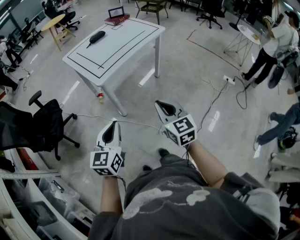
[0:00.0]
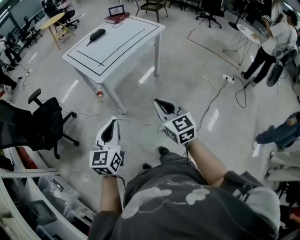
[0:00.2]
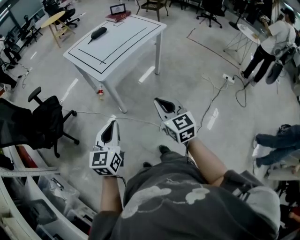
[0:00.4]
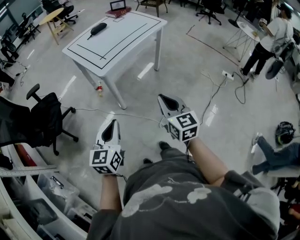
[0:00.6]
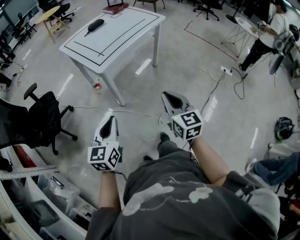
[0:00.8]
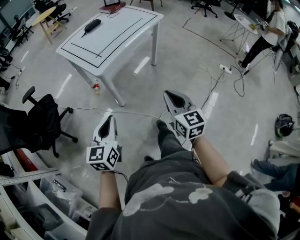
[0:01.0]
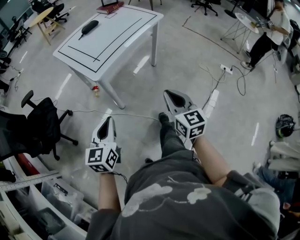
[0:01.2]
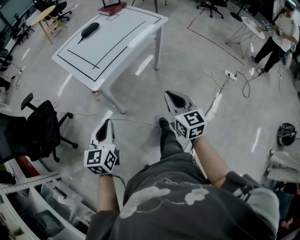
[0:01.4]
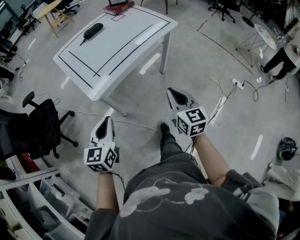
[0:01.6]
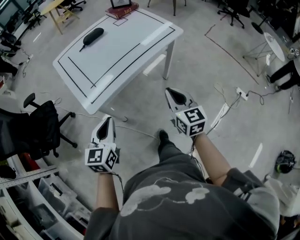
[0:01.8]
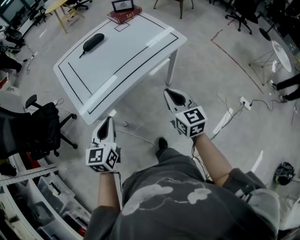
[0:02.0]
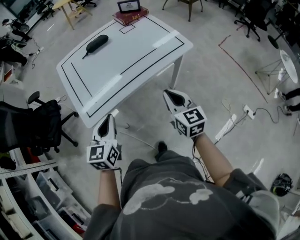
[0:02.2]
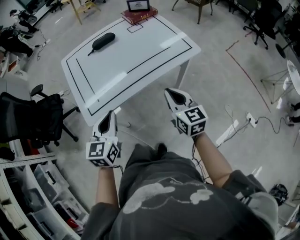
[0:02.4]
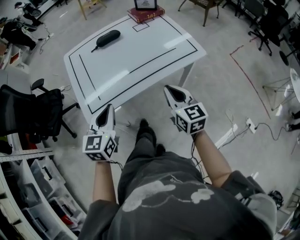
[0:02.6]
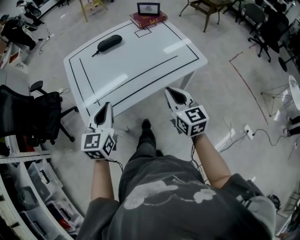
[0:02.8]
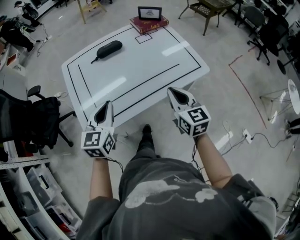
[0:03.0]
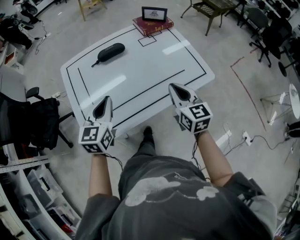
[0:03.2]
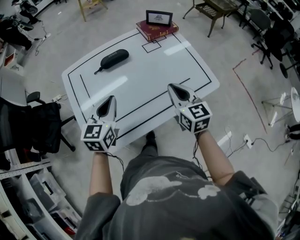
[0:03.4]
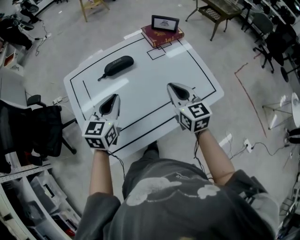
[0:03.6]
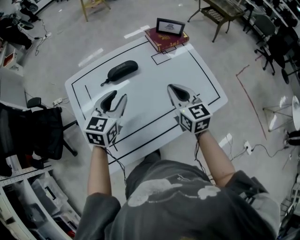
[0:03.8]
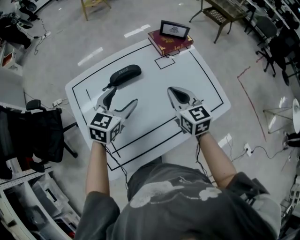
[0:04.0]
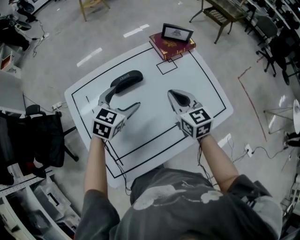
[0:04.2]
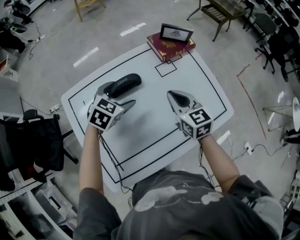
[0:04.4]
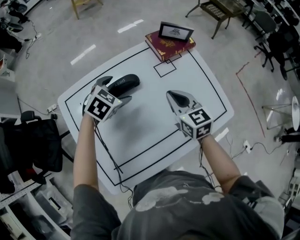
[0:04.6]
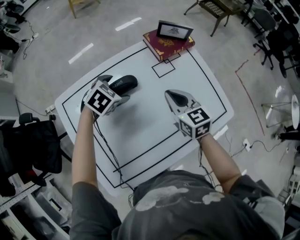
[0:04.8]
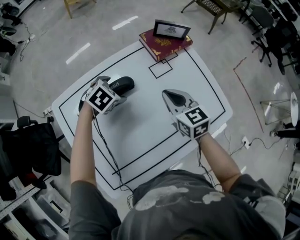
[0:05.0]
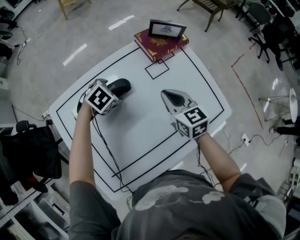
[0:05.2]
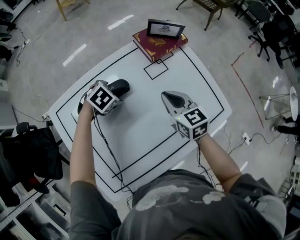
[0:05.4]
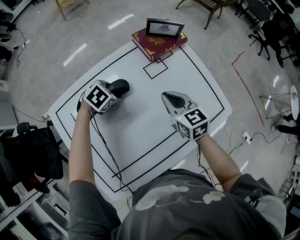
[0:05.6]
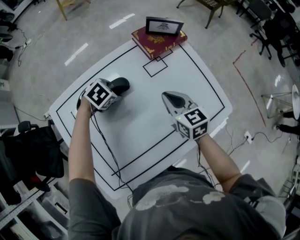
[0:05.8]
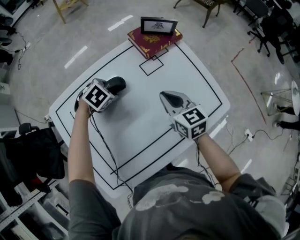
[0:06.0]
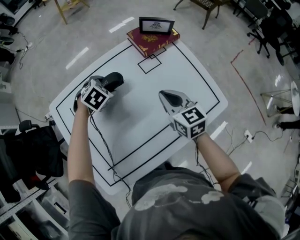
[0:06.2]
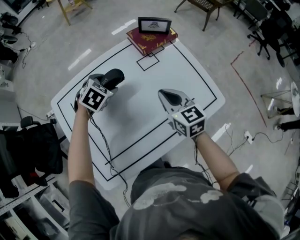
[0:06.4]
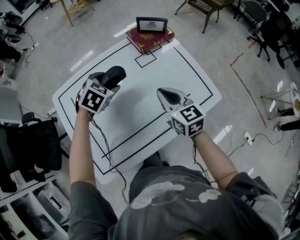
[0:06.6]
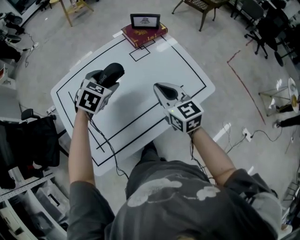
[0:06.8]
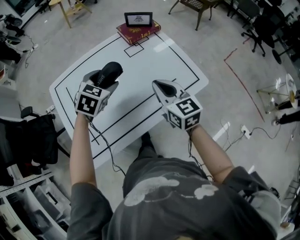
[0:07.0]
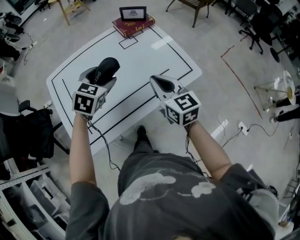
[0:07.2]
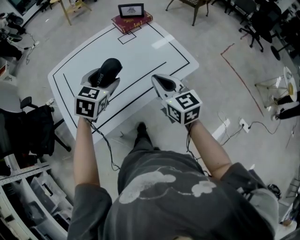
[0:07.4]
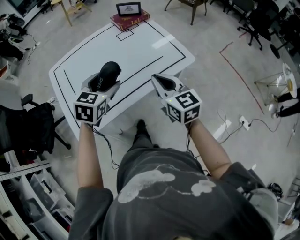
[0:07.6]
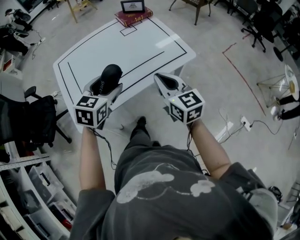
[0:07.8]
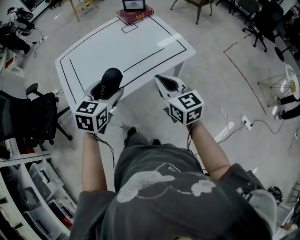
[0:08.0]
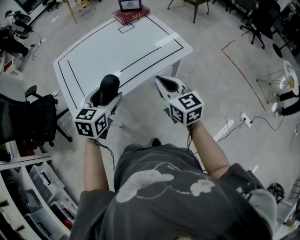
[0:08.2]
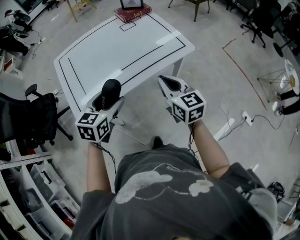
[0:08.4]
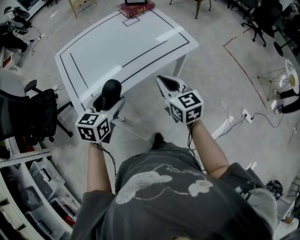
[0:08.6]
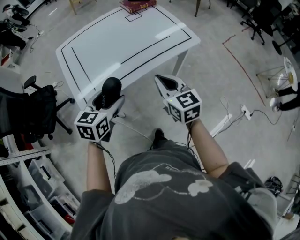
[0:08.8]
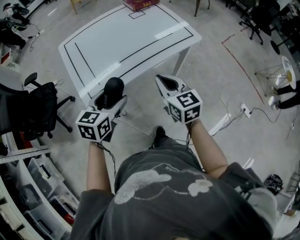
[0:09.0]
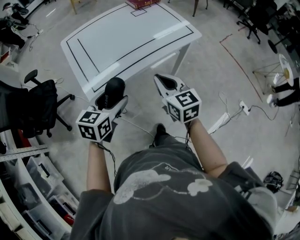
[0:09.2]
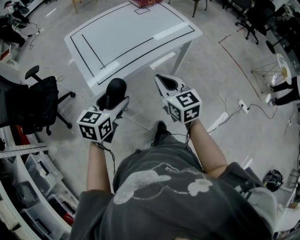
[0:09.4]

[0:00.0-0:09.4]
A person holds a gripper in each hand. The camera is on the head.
0:00.0 to 0:01.6: The two grippers go approximately 20 cm forward.
0:01.6 to 0:03.2: Both grippers move forward, approximately 40 cm. The right gripper turns by approximately 20 degrees.
0:03.2 to 0:04.8: The left gripper is displaced forward and downward by some 35 cm, points its fingers roughly 40 degrees further downward, and opens. The right gripper goes roughly 25 cm forward and to the left.
0:04.8 to 0:06.2: The grippers move only a little.
0:06.2 to 0:07.8: The right gripper travels backward by some 30 cm. The left gripper goes roughly 40 cm backward and upward, and tilts its fingers some 30 degrees upward.
0:07.8 to 0:09.4: The two grippers go about 25 cm backward and to the left.

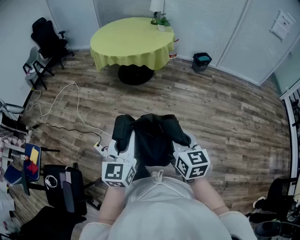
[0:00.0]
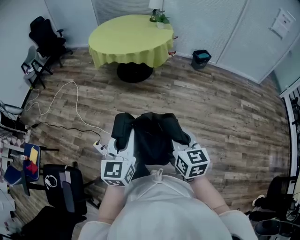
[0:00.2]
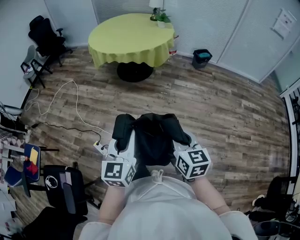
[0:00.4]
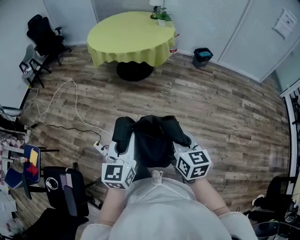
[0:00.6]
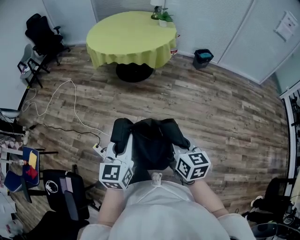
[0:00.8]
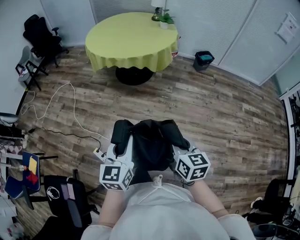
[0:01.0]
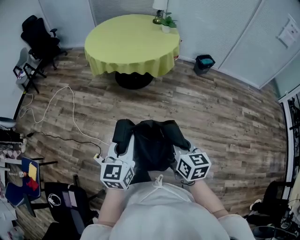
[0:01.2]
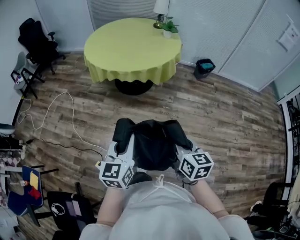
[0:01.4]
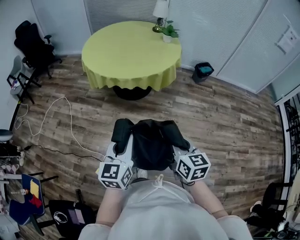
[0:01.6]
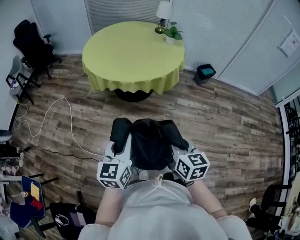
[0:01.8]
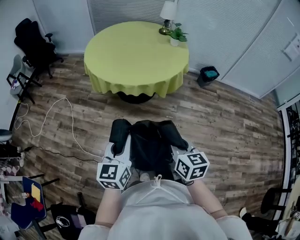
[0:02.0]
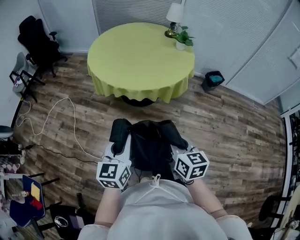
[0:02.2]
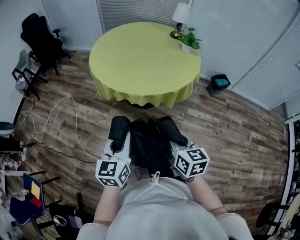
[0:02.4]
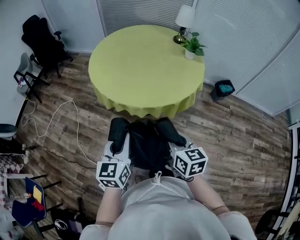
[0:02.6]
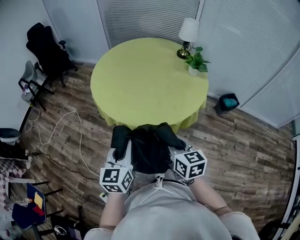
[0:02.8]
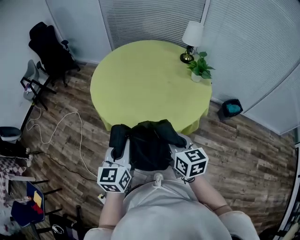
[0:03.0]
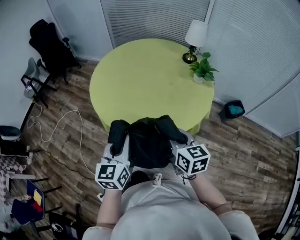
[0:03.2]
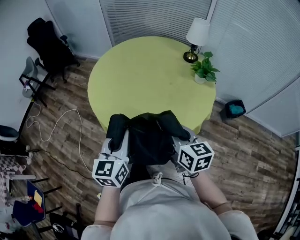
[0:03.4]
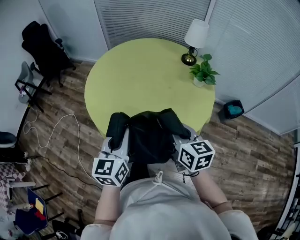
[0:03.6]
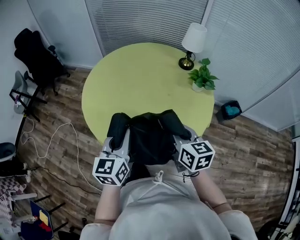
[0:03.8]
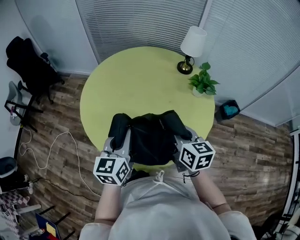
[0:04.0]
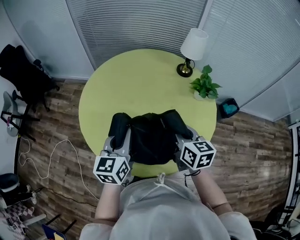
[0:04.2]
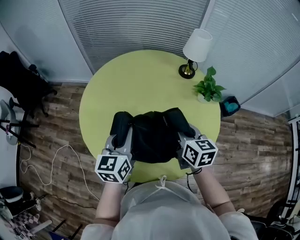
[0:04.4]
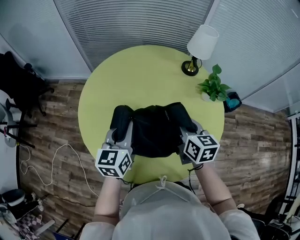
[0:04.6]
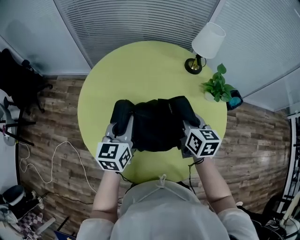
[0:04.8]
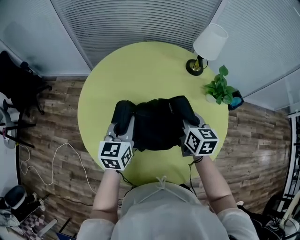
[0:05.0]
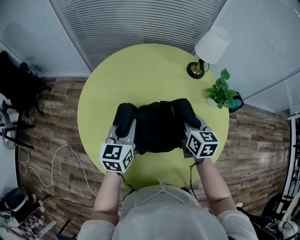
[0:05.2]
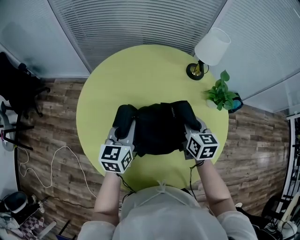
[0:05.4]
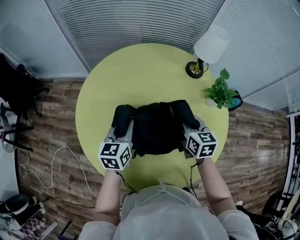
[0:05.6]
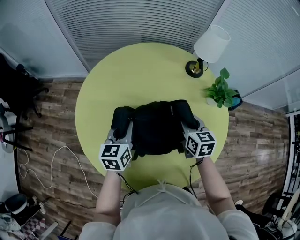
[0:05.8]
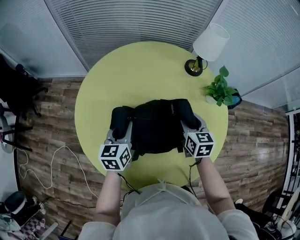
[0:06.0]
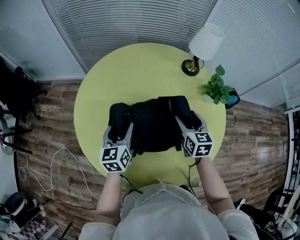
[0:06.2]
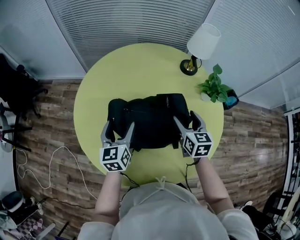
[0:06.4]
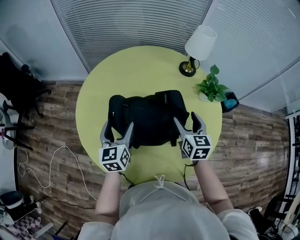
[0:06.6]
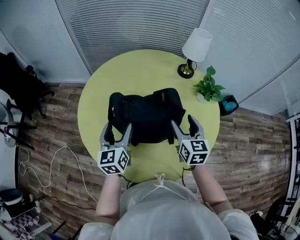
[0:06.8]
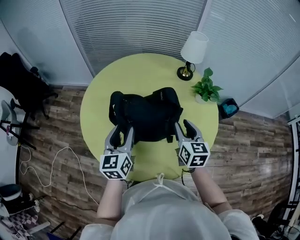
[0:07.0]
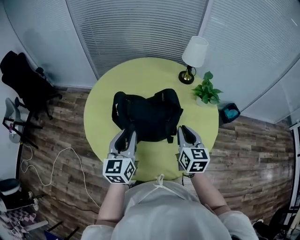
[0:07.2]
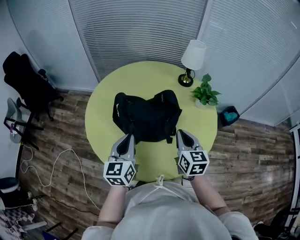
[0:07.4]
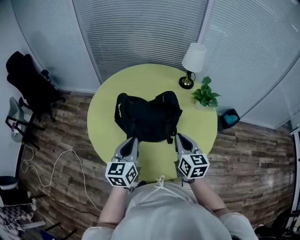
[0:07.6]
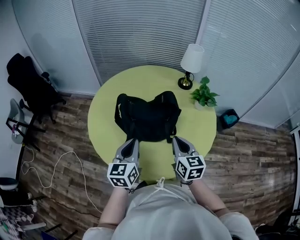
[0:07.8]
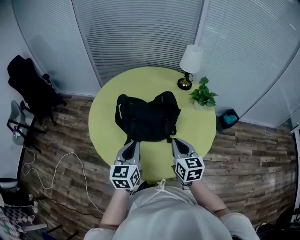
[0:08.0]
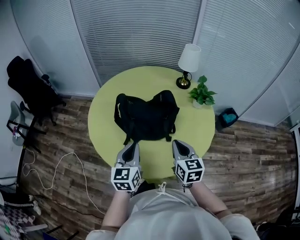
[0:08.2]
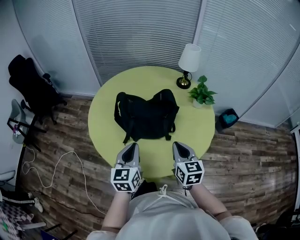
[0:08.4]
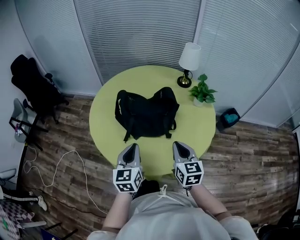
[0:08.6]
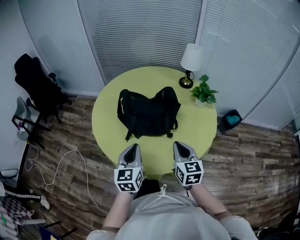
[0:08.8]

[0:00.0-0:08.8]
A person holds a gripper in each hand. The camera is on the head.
0:00.0 to 0:01.4: The two grippers go about 30 cm forward.
0:01.4 to 0:03.0: The pair of grippers is taken forward, approximately 50 cm.
0:03.0 to 0:04.4: Both grippers travel together forward, approximately 40 cm. The right gripper changes its angle by roughly 20 degrees.
0:04.4 to 0:05.8: Both grippers move forward and downward, approximately 20 cm.
0:05.8 to 0:07.4: The grippers both shift backward and upward by some 25 cm. The right gripper opens and closes again. Meanwhile the left gripper opens, then closes once more.
0:07.4 to 0:08.8: The two grippers go some 10 cm backward.

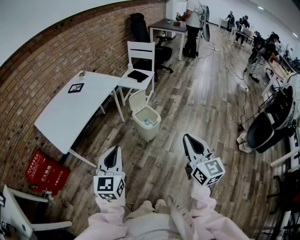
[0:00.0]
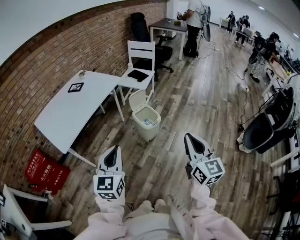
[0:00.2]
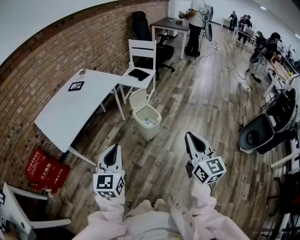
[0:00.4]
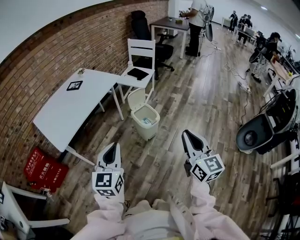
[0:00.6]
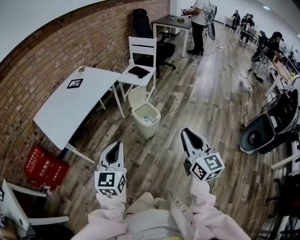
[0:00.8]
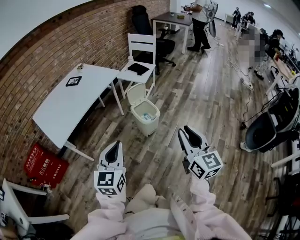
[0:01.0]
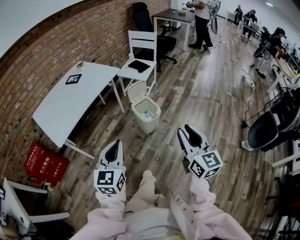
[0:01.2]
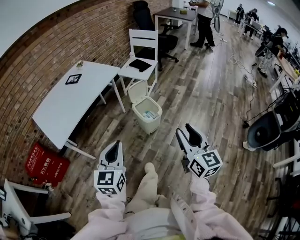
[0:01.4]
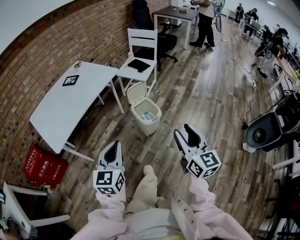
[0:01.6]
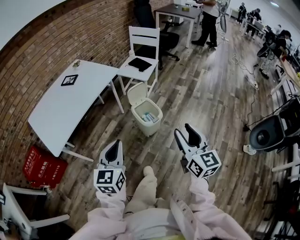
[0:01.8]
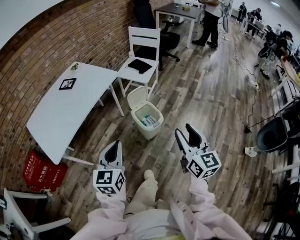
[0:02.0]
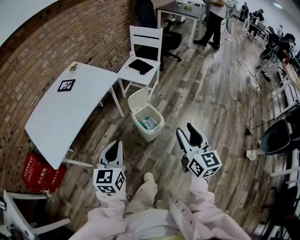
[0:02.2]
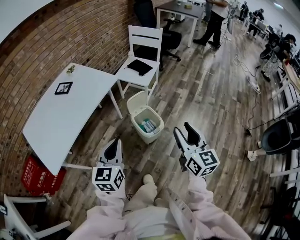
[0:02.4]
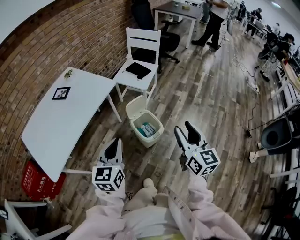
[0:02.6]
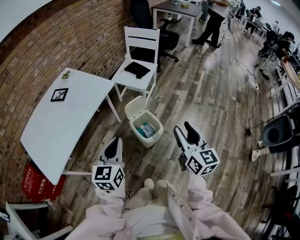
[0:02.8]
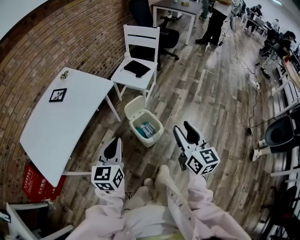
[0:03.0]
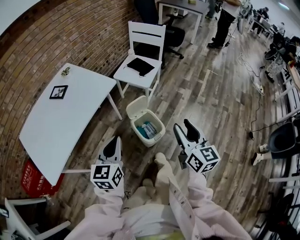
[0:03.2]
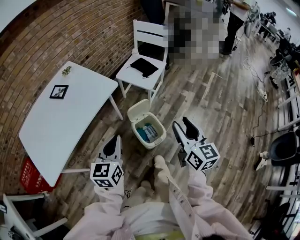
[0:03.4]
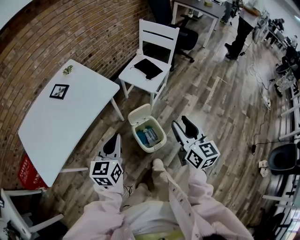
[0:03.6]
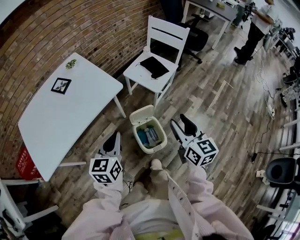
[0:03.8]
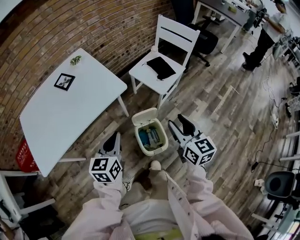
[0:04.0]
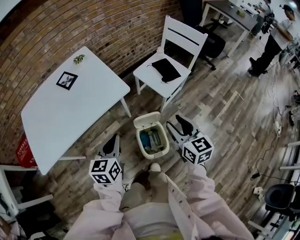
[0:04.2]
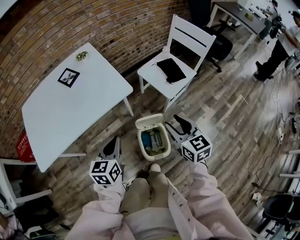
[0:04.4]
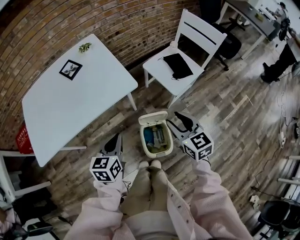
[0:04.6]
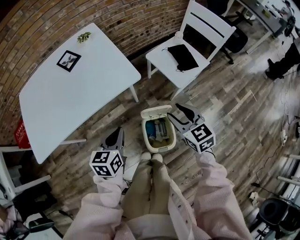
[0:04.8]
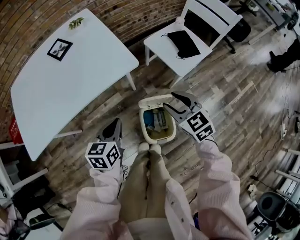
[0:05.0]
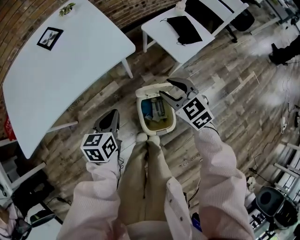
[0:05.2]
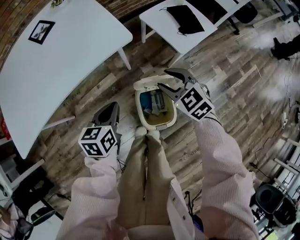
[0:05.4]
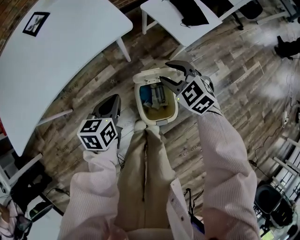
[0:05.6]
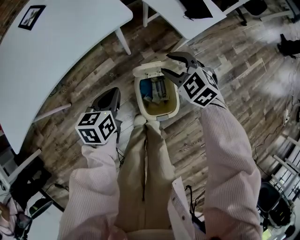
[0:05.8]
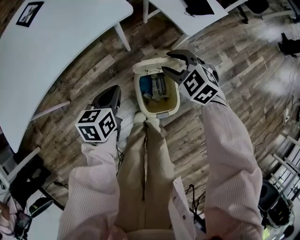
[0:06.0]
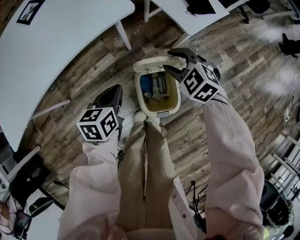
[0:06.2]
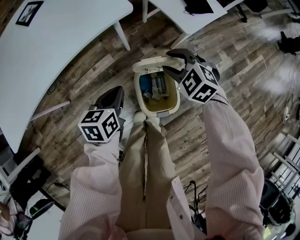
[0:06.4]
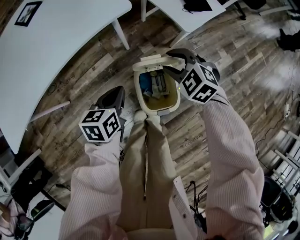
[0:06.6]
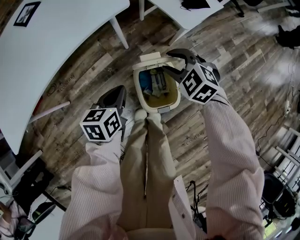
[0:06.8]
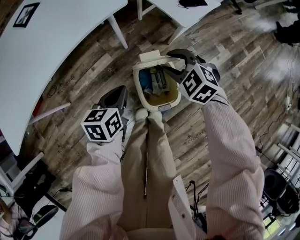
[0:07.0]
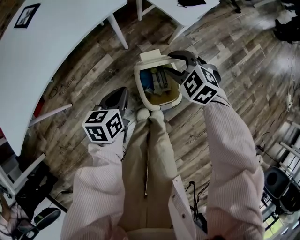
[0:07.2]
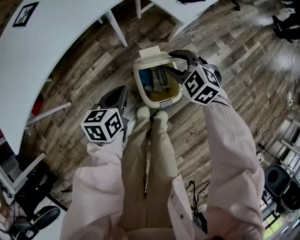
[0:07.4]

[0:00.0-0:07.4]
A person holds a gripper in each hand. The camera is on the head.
0:00.0 to 0:01.4: The left gripper ends up some 5 cm from where it was. Meanwhile the right gripper moves forward, approximately 5 cm, and opens up.
0:01.4 to 0:03.0: Both grippers travel together forward, roughly 30 cm.
0:03.0 to 0:04.4: The left gripper changes place by some 20 cm, and changes its angle by roughly 30 degrees. The right gripper shifts by roughly 30 cm, and swivels some 40 degrees.
0:04.4 to 0:06.0: The two grippers go some 25 cm downward. The left gripper changes its angle by roughly 20 degrees; the right gripper swivels approximately 50 degrees.
0:06.0 to 0:07.4: The grippers both shift backward by roughly 5 cm.
